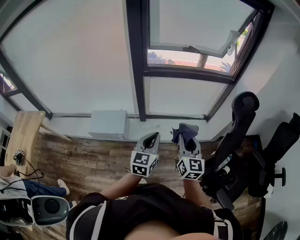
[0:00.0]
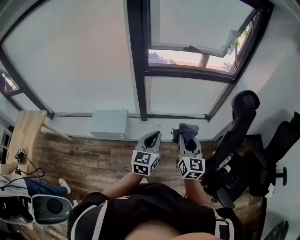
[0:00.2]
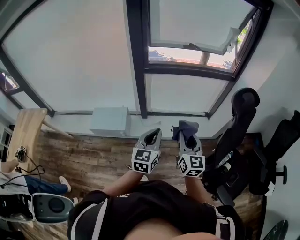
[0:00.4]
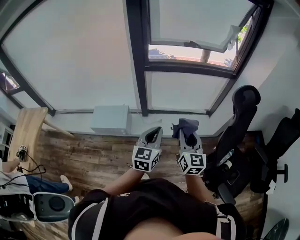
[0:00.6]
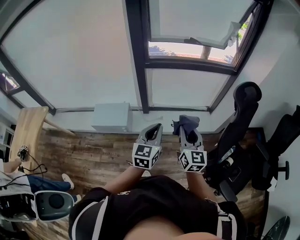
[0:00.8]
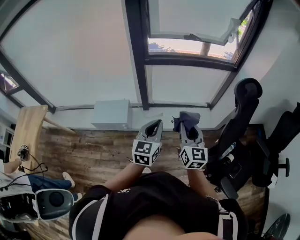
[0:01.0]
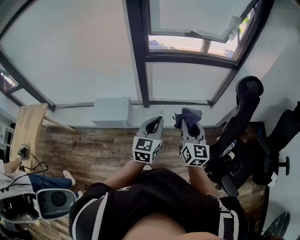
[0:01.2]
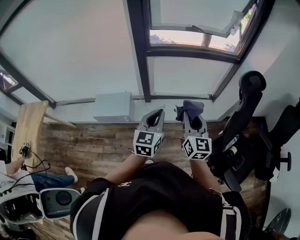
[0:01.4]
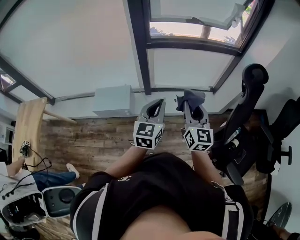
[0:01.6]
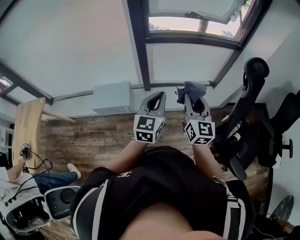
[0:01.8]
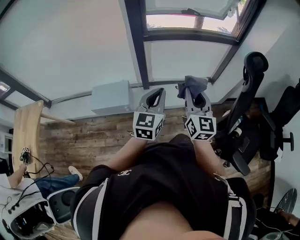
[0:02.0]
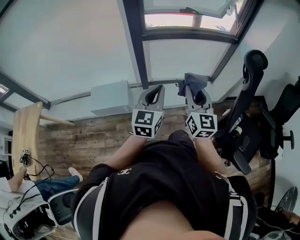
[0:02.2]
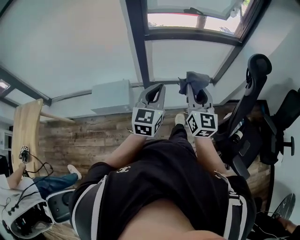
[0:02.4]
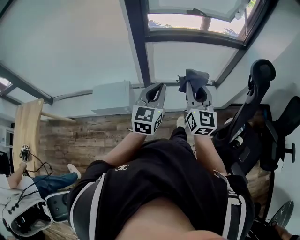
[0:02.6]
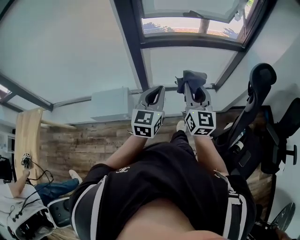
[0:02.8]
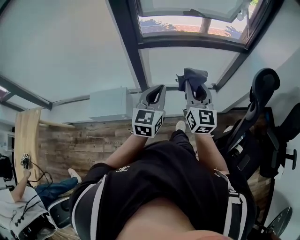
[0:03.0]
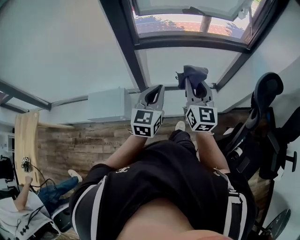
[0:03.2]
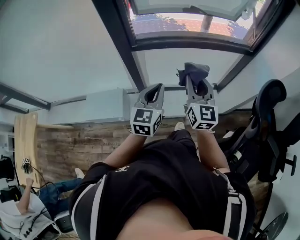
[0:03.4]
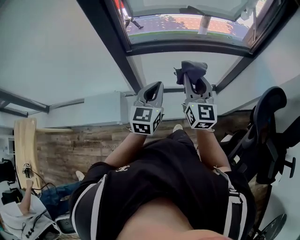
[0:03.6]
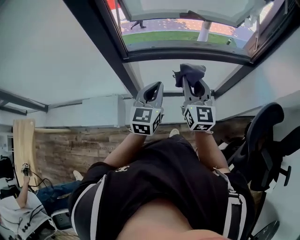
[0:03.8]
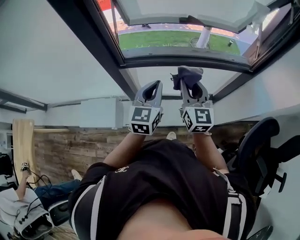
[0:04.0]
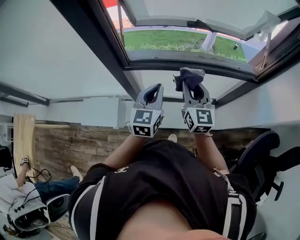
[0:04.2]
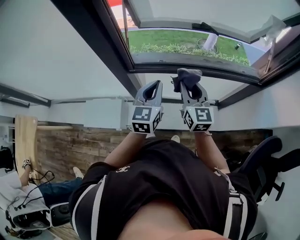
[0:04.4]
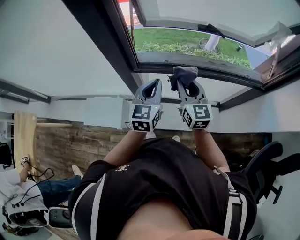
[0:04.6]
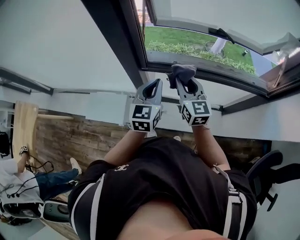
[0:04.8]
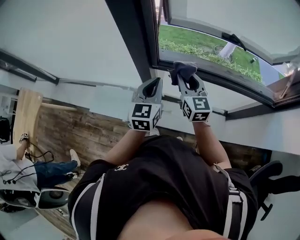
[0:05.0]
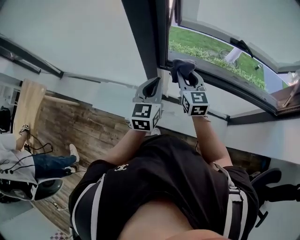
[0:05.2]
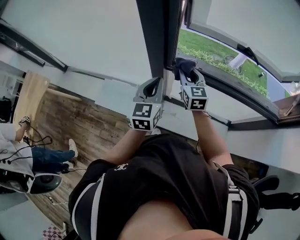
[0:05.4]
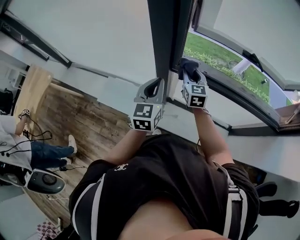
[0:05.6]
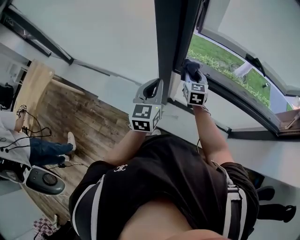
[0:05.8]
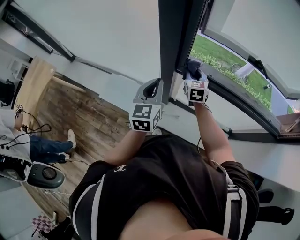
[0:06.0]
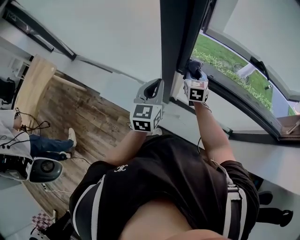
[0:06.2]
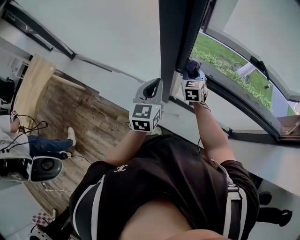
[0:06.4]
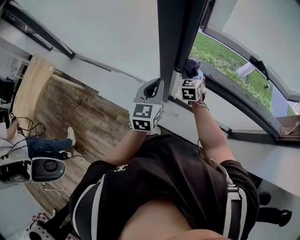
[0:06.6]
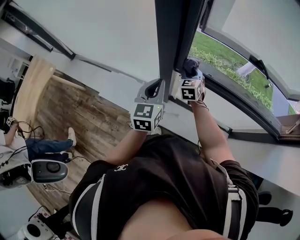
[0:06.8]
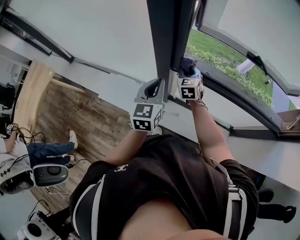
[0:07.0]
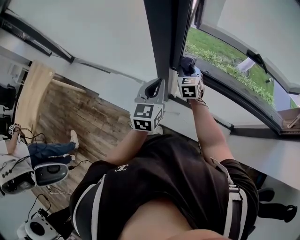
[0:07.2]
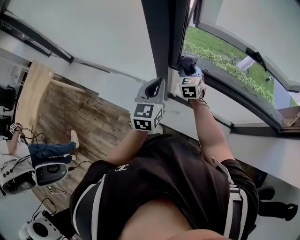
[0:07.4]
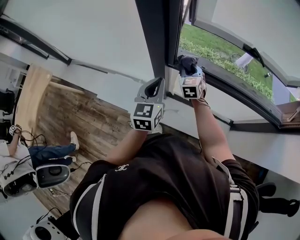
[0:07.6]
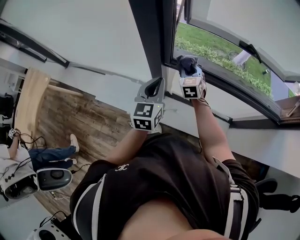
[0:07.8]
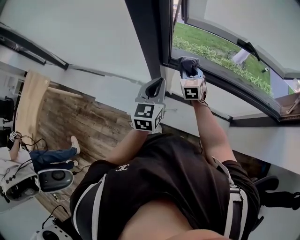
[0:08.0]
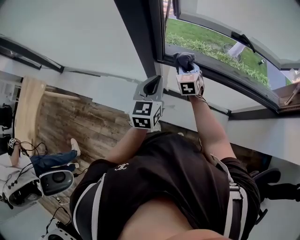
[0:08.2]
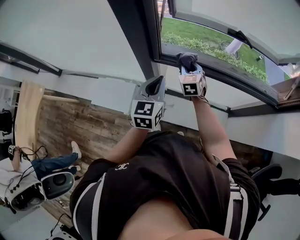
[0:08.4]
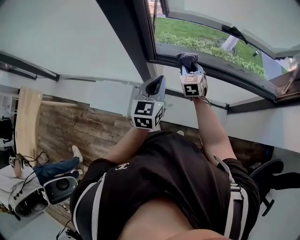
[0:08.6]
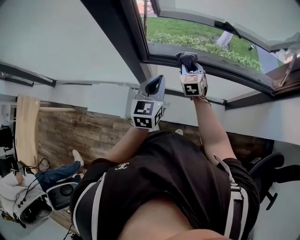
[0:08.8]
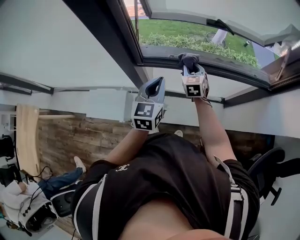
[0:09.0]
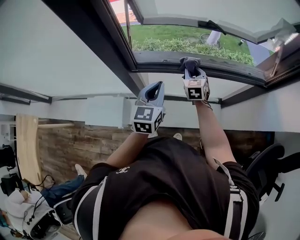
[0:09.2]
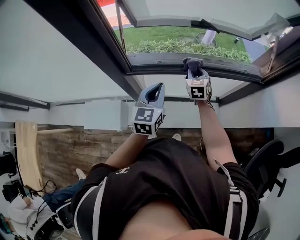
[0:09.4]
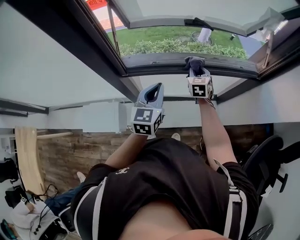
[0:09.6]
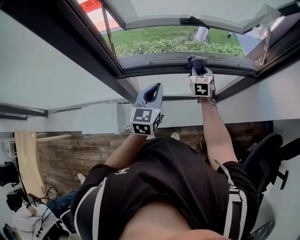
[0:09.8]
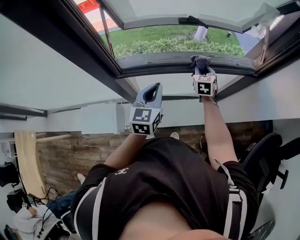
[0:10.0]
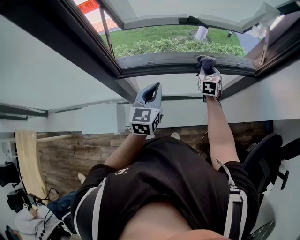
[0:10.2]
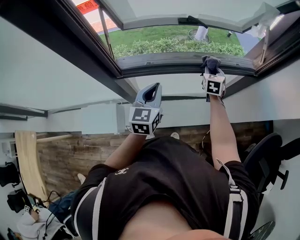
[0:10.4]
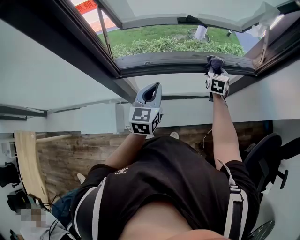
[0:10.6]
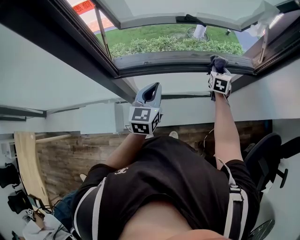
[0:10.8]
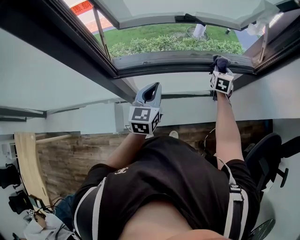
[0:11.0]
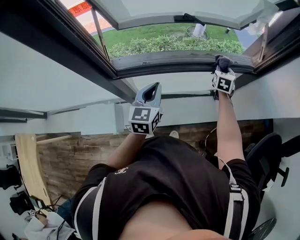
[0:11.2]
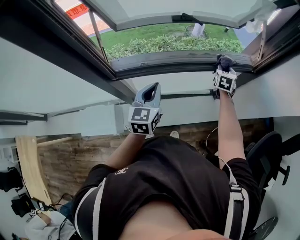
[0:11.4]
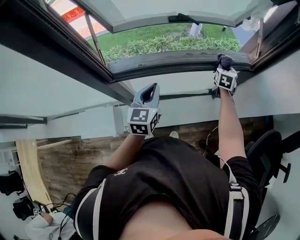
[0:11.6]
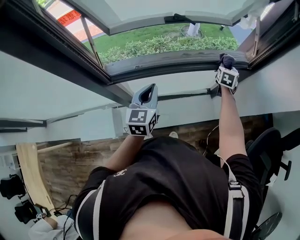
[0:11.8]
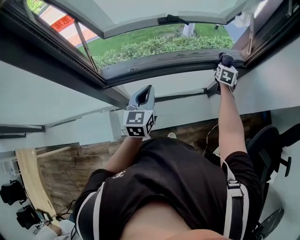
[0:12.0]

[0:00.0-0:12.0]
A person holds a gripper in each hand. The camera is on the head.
0:00.0 to 0:01.6: The grippers stay close to where they were, moving slightly.
0:01.6 to 0:03.0: The grippers both shift forward by roughly 20 cm.
0:03.0 to 0:04.4: The two grippers go roughly 30 cm forward.
0:04.4 to 0:06.0: The left gripper travels to the left by roughly 20 cm, and turns by some 20 degrees; the right gripper travels to the left, forward and downward by about 25 cm, and rotates approximately 30 degrees.
0:06.0 to 0:07.6: The grippers make only small movements.
0:07.6 to 0:09.0: Both grippers travel together to the right, roughly 15 cm.
0:09.0 to 0:10.4: The left gripper goes approximately 5 cm to the right; the right gripper is displaced to the right by some 25 cm, and swivels about 20 degrees.
0:10.4 to 0:12.0: The right gripper shifts some 20 cm to the right and forward.

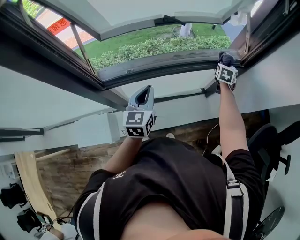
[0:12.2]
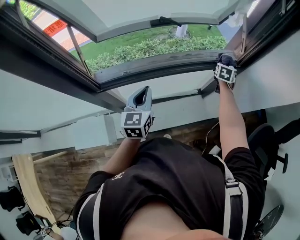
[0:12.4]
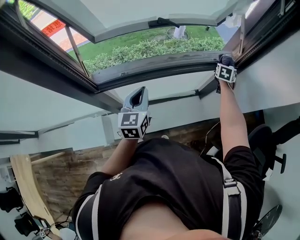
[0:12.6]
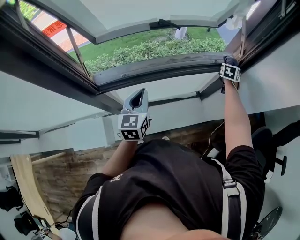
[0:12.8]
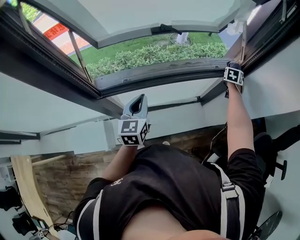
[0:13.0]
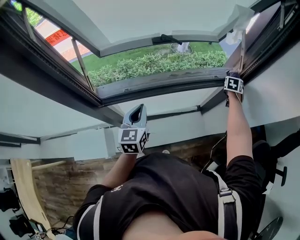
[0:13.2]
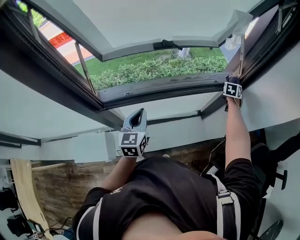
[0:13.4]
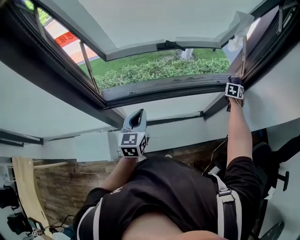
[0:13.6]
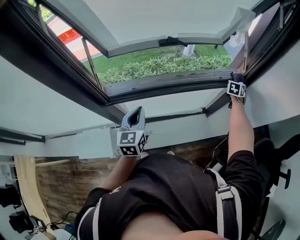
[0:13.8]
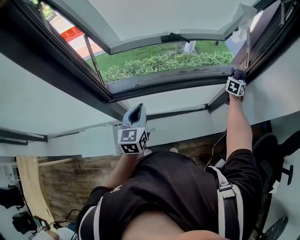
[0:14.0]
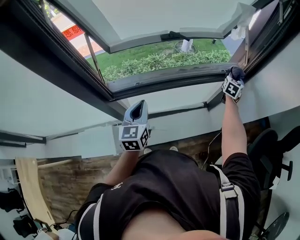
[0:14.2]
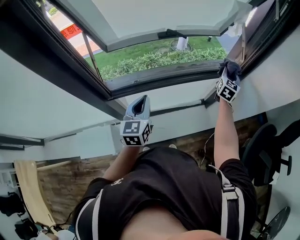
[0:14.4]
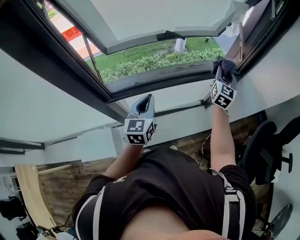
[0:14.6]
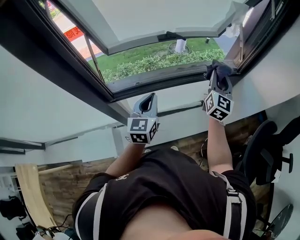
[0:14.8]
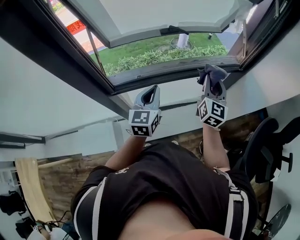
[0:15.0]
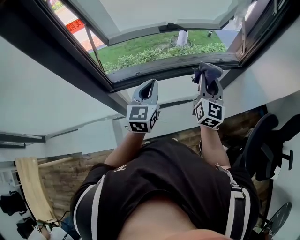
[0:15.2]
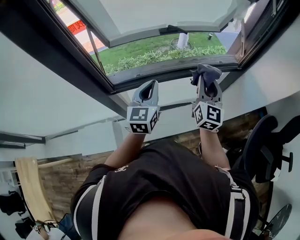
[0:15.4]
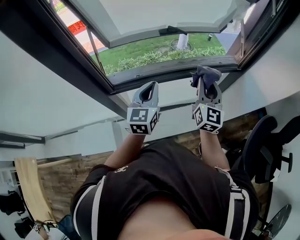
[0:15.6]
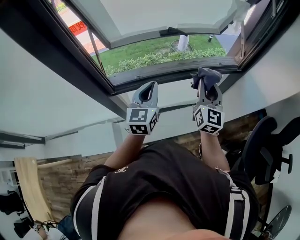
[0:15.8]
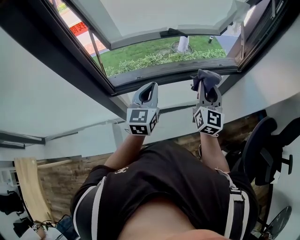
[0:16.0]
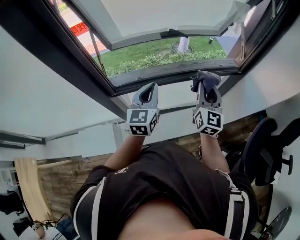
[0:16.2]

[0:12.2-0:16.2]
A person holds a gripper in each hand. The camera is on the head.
0:12.2 to 0:13.6: The right gripper shifts about 10 cm to the right and forward.
0:13.6 to 0:14.8: The right gripper is displaced backward, upward and to the left by about 35 cm, and tips its fingers upward by roughly 40 degrees.
0:14.8 to 0:16.2: The right gripper travels backward and to the left by approximately 10 cm.

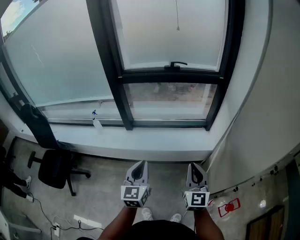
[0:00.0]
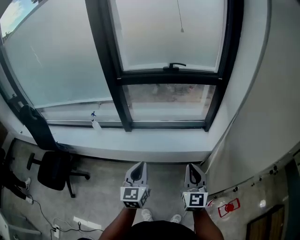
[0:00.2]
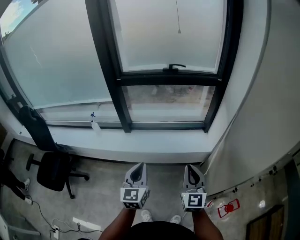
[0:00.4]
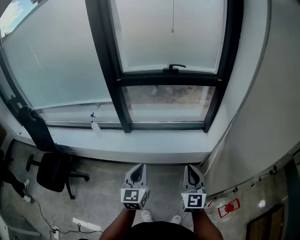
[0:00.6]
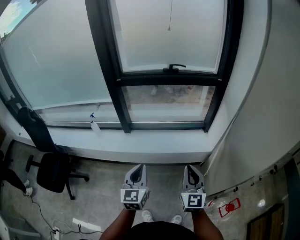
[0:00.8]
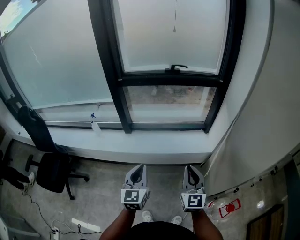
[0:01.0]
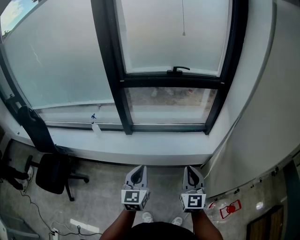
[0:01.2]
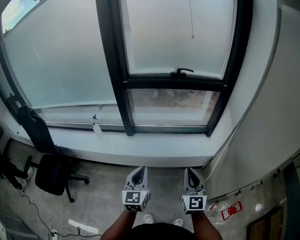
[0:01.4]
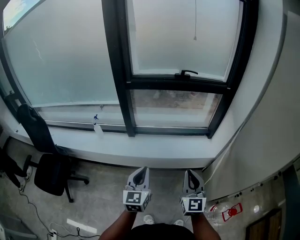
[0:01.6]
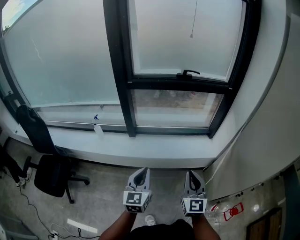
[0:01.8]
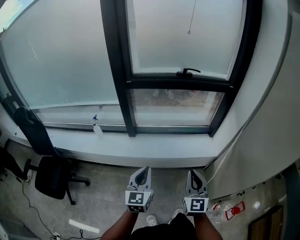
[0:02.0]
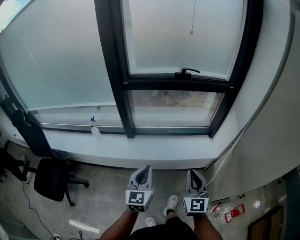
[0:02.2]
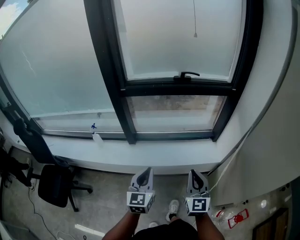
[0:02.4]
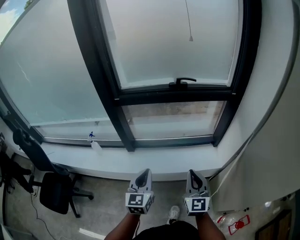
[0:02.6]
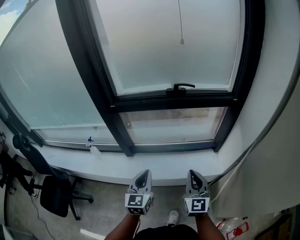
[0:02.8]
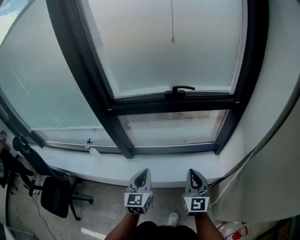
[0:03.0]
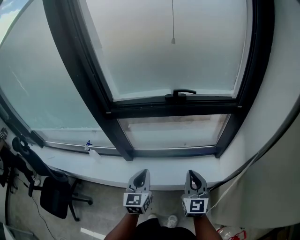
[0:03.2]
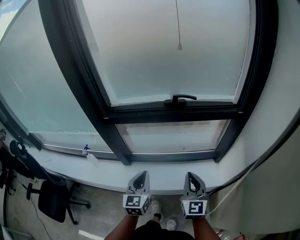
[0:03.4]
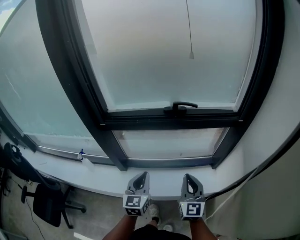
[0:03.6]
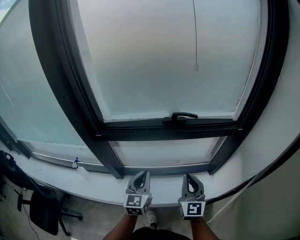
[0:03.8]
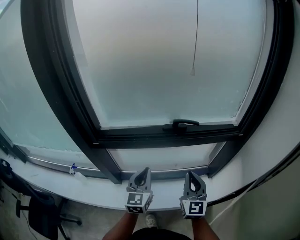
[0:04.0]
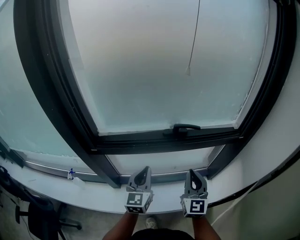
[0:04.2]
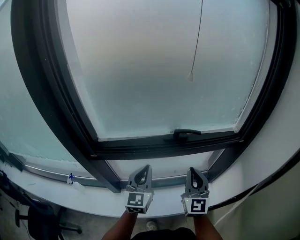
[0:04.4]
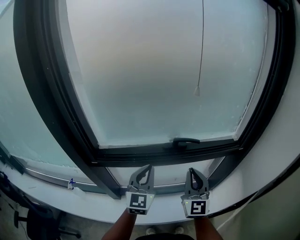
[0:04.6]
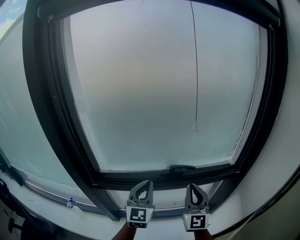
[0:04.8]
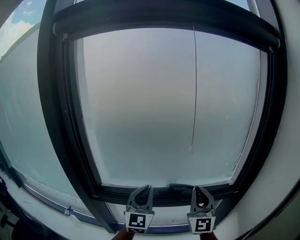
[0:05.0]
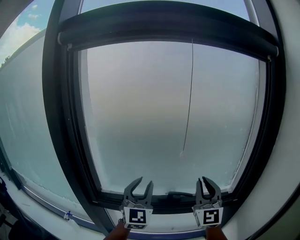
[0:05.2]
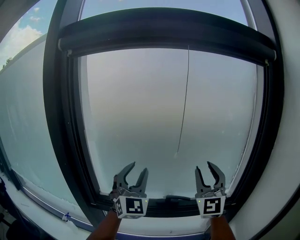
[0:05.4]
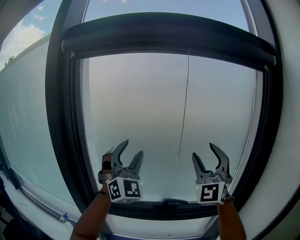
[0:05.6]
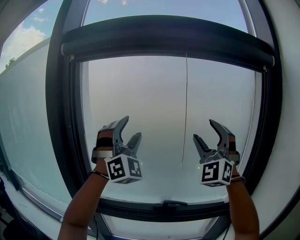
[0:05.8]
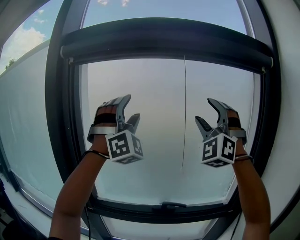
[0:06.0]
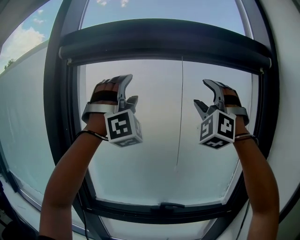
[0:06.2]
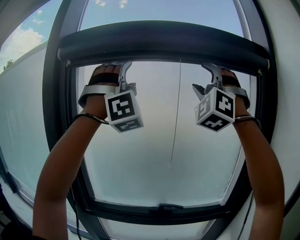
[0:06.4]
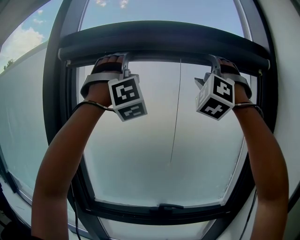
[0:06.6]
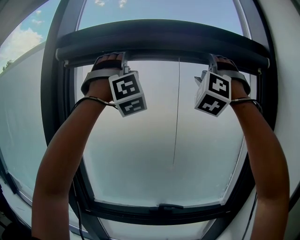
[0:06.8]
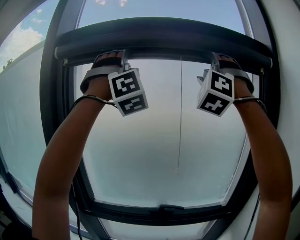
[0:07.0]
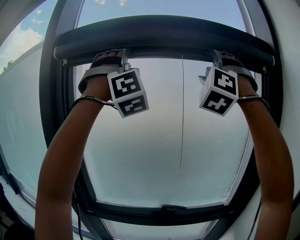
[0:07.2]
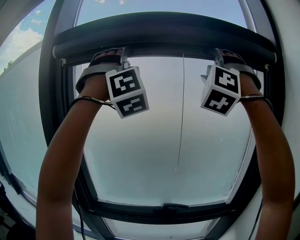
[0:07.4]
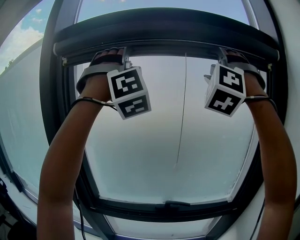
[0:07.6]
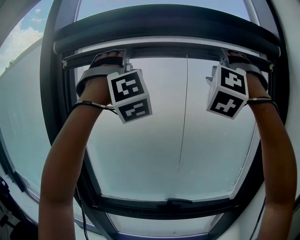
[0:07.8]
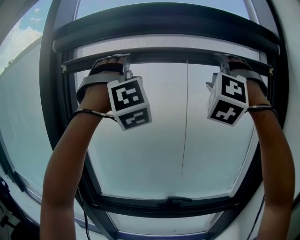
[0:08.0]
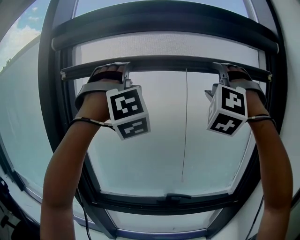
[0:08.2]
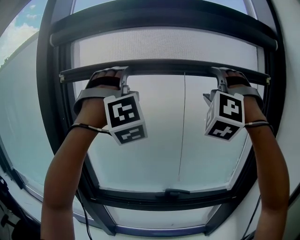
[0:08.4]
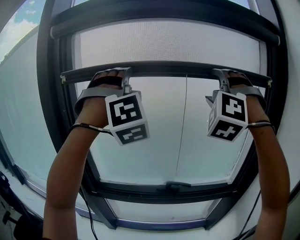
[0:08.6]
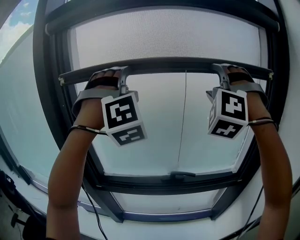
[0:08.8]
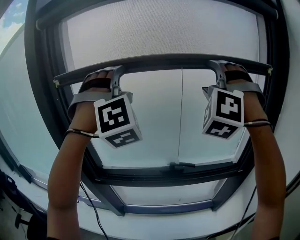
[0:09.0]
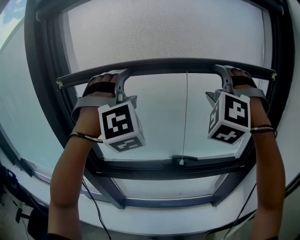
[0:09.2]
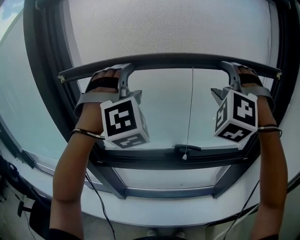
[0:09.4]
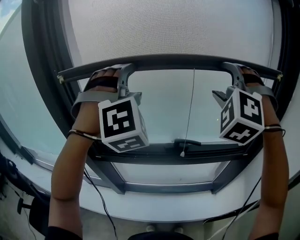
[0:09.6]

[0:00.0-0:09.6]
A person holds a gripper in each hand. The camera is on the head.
0:00.0 to 0:01.6: The grippers both shift to the left by some 10 cm.
0:01.6 to 0:03.2: Both grippers move forward, some 30 cm.
0:03.2 to 0:04.8: The grippers both shift forward and upward by approximately 30 cm. The right gripper changes its angle by roughly 20 degrees. Meanwhile the left gripper swivels some 20 degrees.
0:04.8 to 0:06.4: Both grippers move upward, roughly 60 cm. The left gripper rotates around the line of its fingers by roughly 90 degrees, clockwise from behind, and opens. The right gripper twists approximately 70 degrees counterclockwise, seen from behind, and opens.
0:06.4 to 0:08.0: There are only small adjustments of the grippers.
0:08.0 to 0:09.6: The grippers both shift downward by some 25 cm. The left gripper swivels about 20 degrees, while the right gripper changes its angle by roughly 20 degrees.
